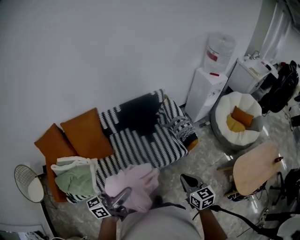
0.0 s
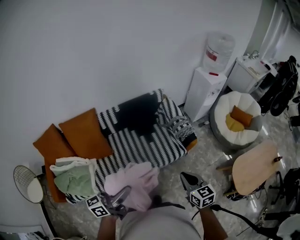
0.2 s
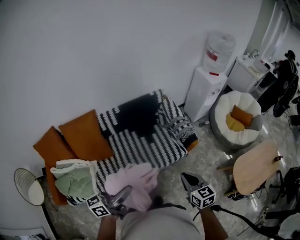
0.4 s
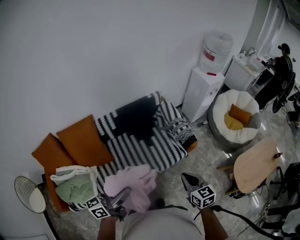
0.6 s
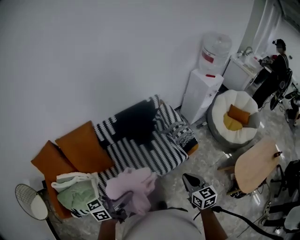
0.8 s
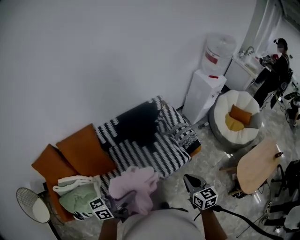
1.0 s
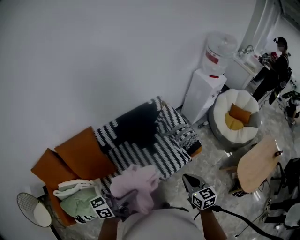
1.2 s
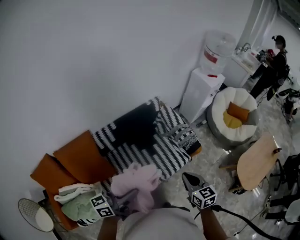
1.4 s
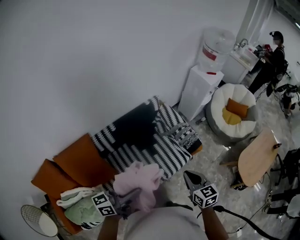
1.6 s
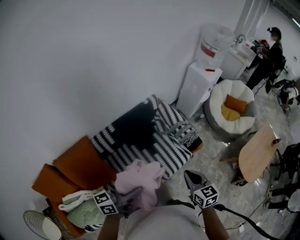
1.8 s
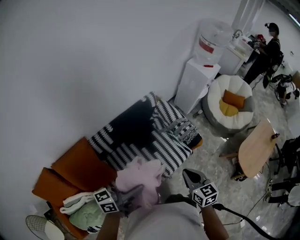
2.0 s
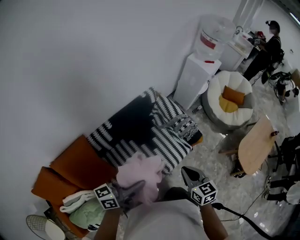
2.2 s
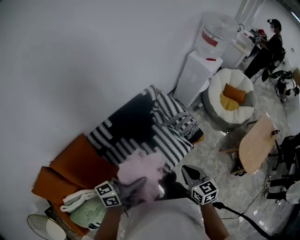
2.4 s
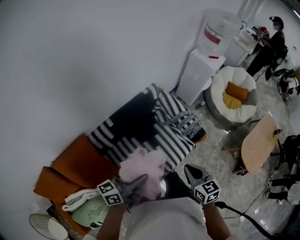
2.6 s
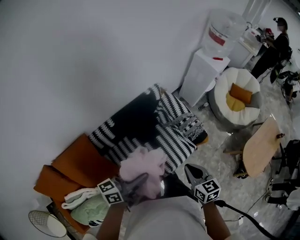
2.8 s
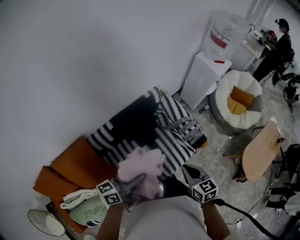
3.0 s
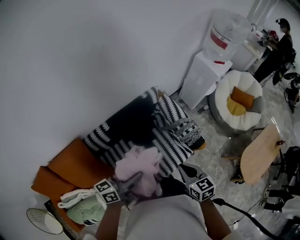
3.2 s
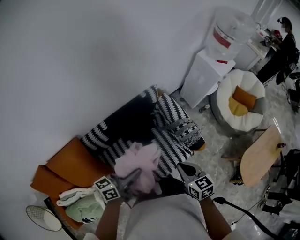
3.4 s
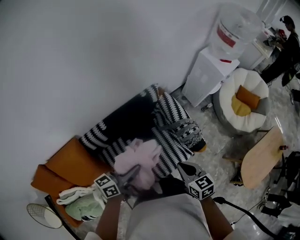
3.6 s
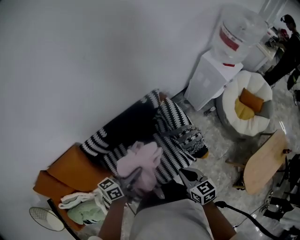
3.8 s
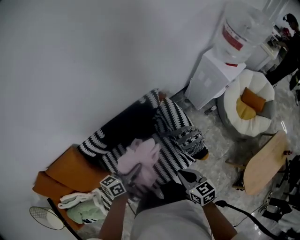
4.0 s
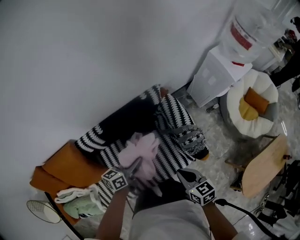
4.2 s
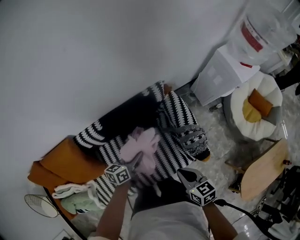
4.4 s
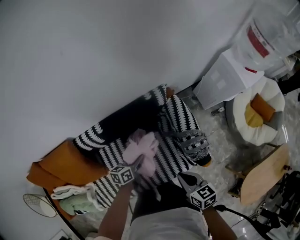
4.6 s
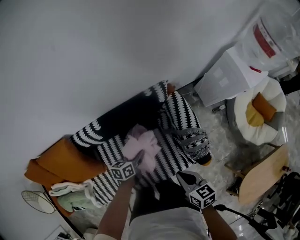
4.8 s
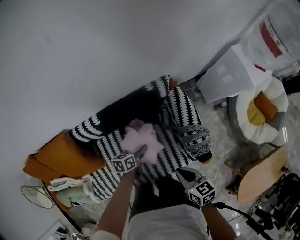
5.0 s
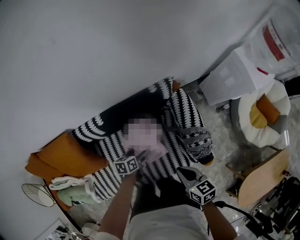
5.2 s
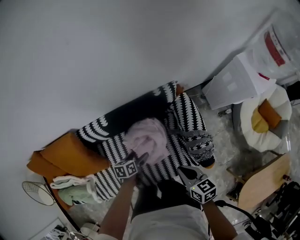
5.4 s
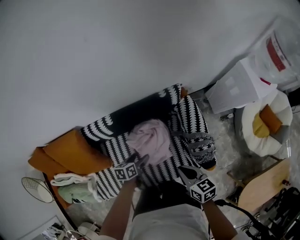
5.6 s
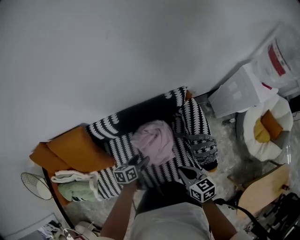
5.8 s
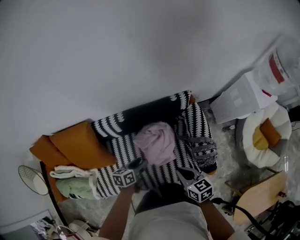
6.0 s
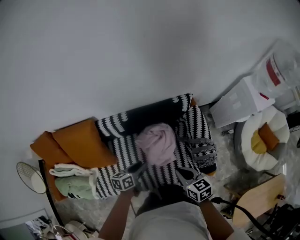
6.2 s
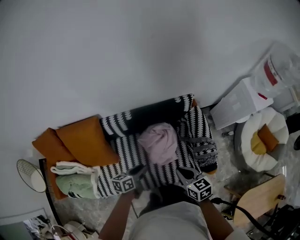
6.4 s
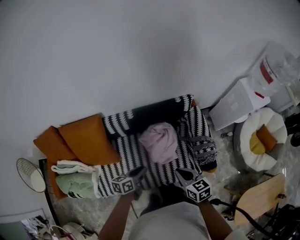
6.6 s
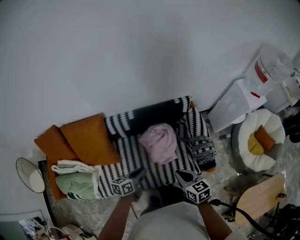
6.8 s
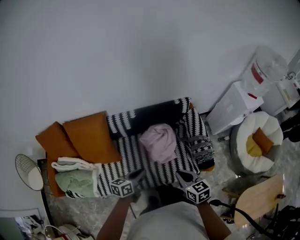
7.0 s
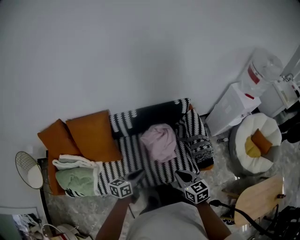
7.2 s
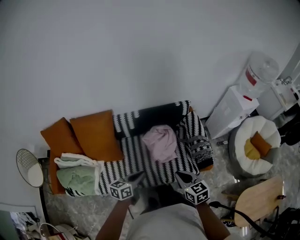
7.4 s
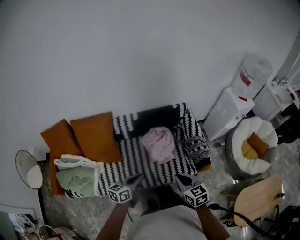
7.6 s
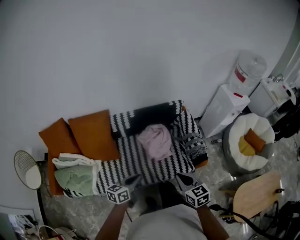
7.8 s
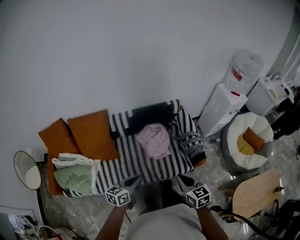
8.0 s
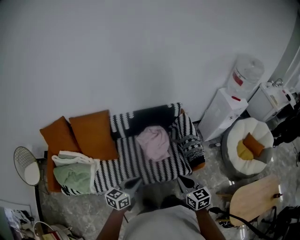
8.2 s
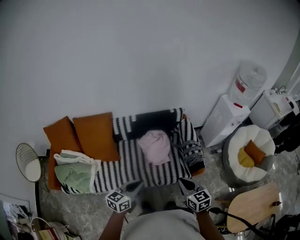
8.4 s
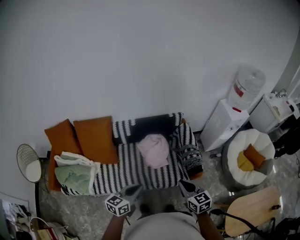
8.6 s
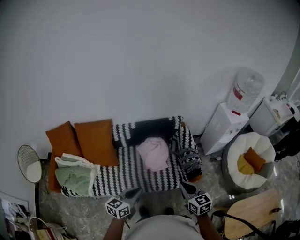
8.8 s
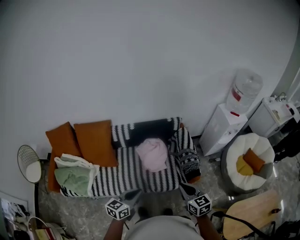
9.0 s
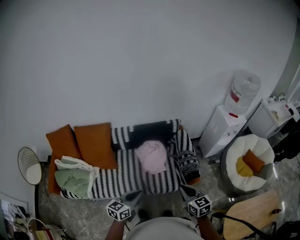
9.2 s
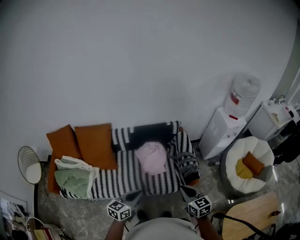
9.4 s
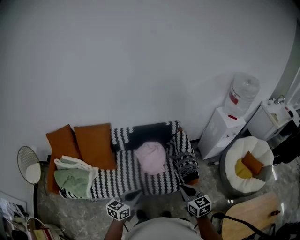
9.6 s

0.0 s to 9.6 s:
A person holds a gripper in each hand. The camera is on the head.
0.0 to 1.6 s: Both grippers travel together forward and to the left, roughly 25 cm. The left gripper turns by approximately 20 degrees.
1.6 to 3.2 s: Both grippers move forward and downward, approximately 20 cm.
3.2 to 4.8 s: The left gripper is displaced downward and forward by some 40 cm, and angles its fingers downward, by about 30 degrees. Meanwhile the right gripper moves forward and downward, roughly 25 cm, and rotates about 20 degrees.
4.8 to 6.4 s: The left gripper heads backward, to the left and upward, covering approximately 25 cm, and opens and closes again. The right gripper travels to the left, upward and backward by some 15 cm.
6.4 to 8.0 s: The left gripper travels backward and upward by approximately 35 cm, and changes its angle by roughly 20 degrees. The right gripper goes about 30 cm backward.
8.0 to 9.6 s: The right gripper shifts some 10 cm to the right. Meanwhile the left gripper travels to the right, upward and backward by some 15 cm.

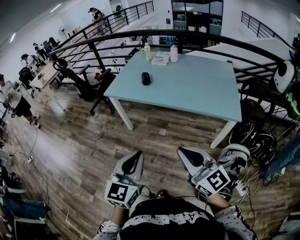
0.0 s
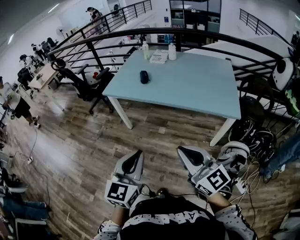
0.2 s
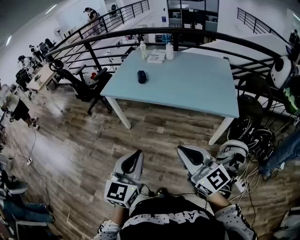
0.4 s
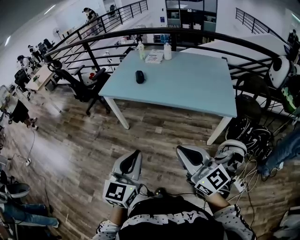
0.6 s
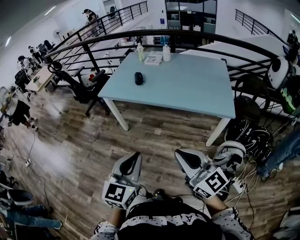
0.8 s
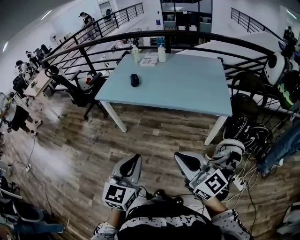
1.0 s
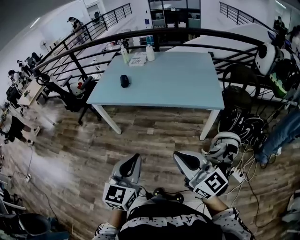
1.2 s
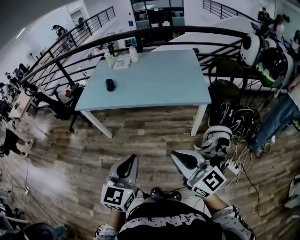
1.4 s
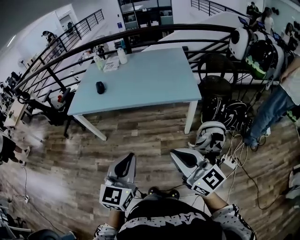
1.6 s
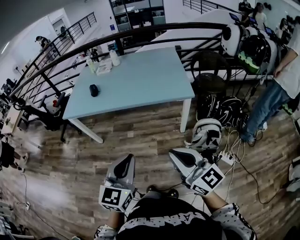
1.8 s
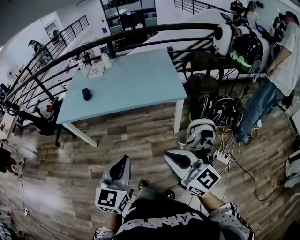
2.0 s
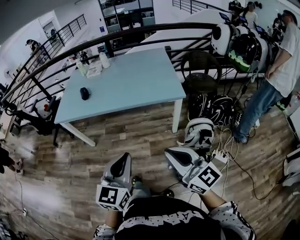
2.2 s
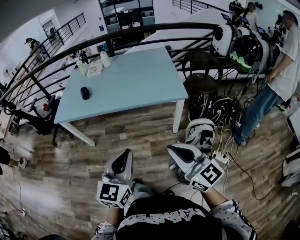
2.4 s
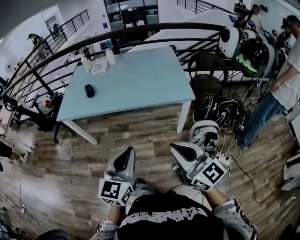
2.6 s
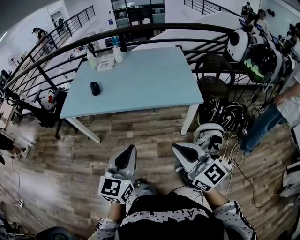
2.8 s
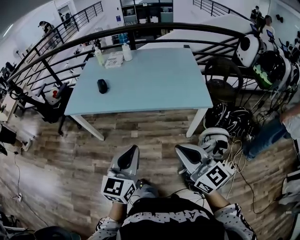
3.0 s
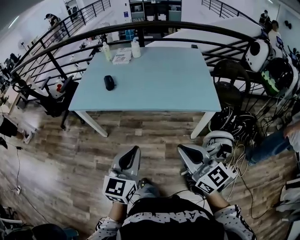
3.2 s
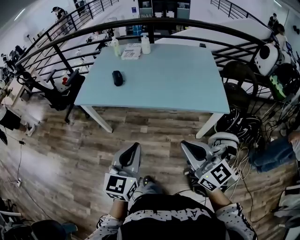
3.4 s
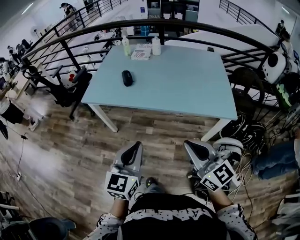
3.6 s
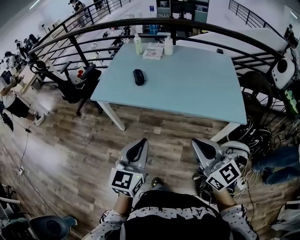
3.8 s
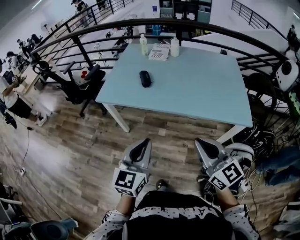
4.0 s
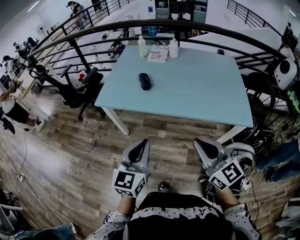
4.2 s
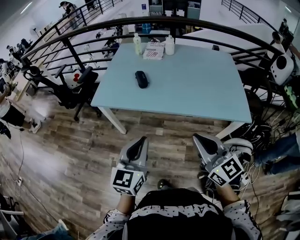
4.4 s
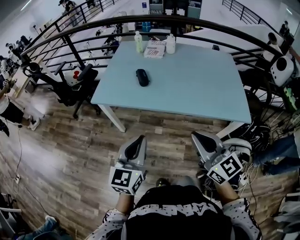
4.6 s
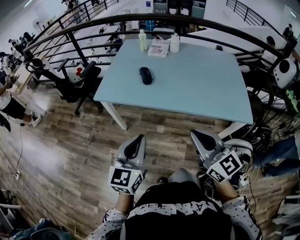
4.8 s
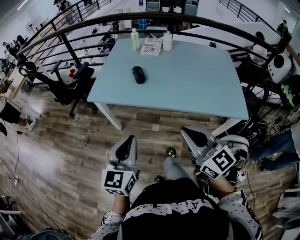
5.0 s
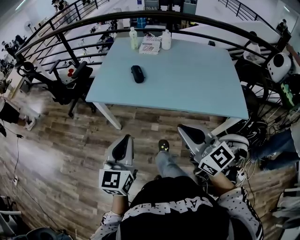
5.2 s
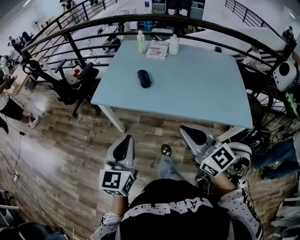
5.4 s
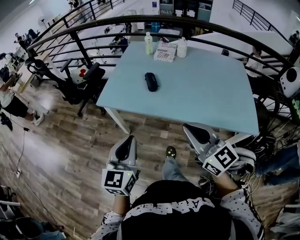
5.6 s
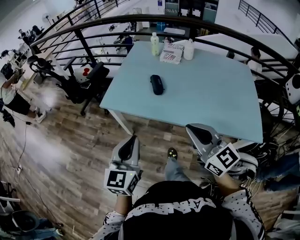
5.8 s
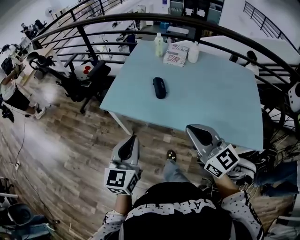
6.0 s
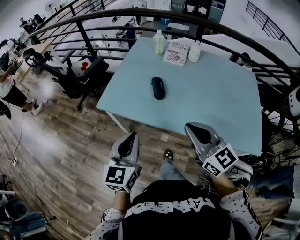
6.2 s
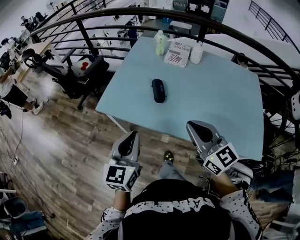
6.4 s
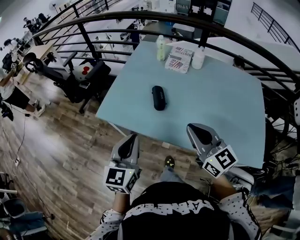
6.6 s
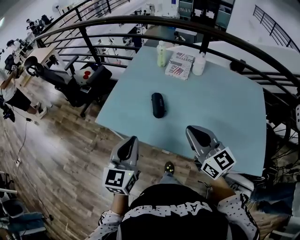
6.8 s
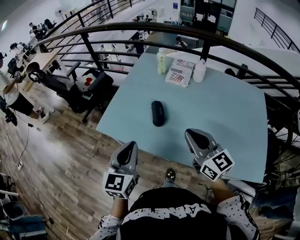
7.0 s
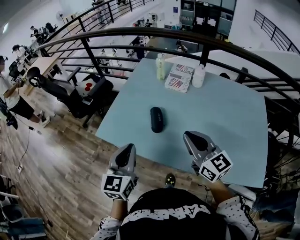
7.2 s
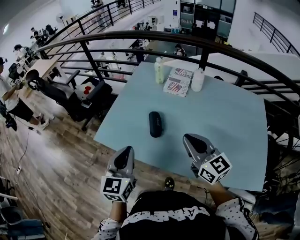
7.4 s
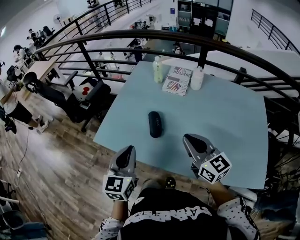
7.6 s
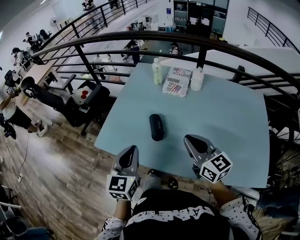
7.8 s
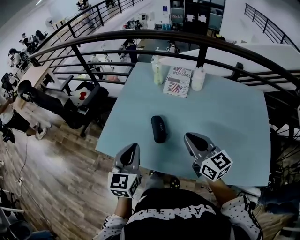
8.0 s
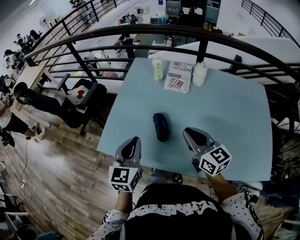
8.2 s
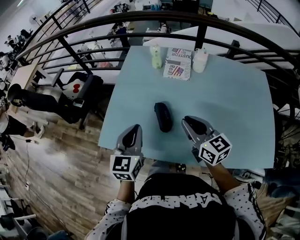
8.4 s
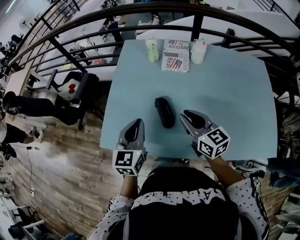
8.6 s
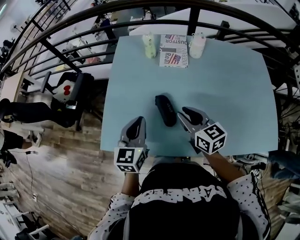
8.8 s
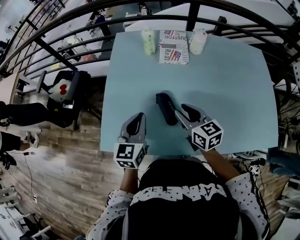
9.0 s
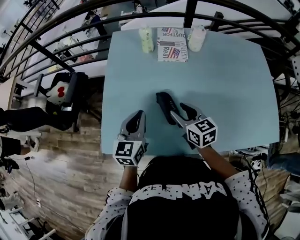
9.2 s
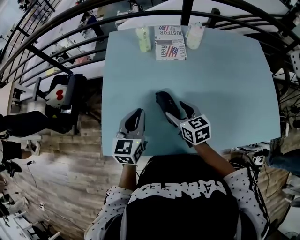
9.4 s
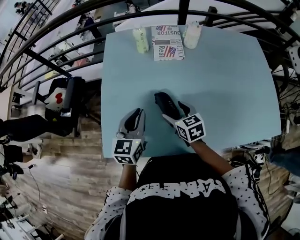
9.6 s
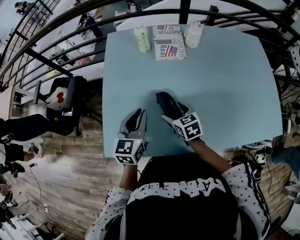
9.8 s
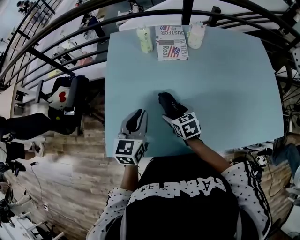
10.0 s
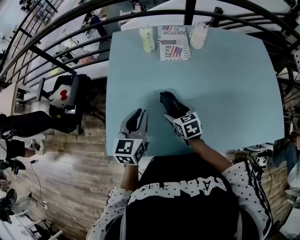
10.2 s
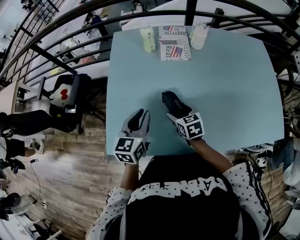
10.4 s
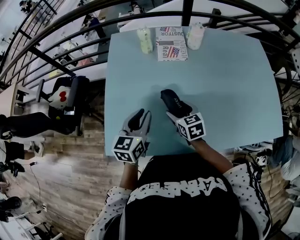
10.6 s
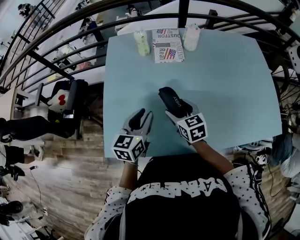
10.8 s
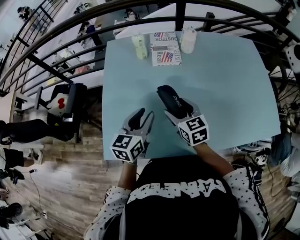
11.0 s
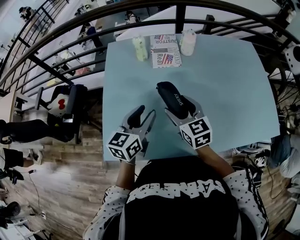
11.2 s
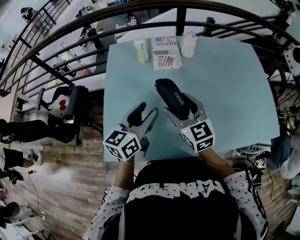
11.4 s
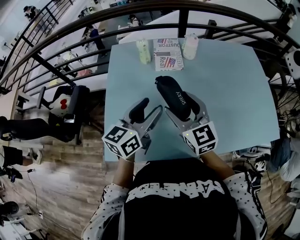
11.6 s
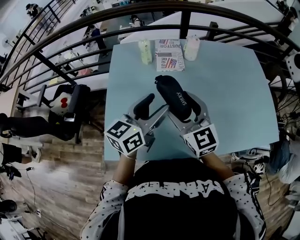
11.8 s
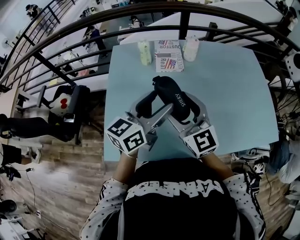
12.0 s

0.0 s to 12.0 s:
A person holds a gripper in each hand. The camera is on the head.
0.0 to 1.6 s: The left gripper travels to the right by some 15 cm; the right gripper moves to the right and backward, roughly 15 cm.
1.6 to 3.0 s: Both grippers move forward and to the left, about 15 cm.
3.0 to 4.4 s: The right gripper shifts some 25 cm forward and to the left; the left gripper heads to the left and forward, covering approximately 25 cm.
4.4 to 6.0 s: The right gripper goes some 20 cm forward. The left gripper goes roughly 20 cm forward and to the left.
6.0 to 7.6 s: The grippers both shift forward and to the right by about 20 cm.
7.6 to 9.0 s: The right gripper is displaced forward, downward and to the left by some 25 cm, and rotates some 30 degrees; the left gripper heads forward and downward, covering approximately 25 cm, and turns by some 20 degrees.
9.0 to 10.4 s: The right gripper travels downward by some 10 cm, changes its angle by approximately 20 degrees, and opens its fingers.
10.4 to 12.0 s: The right gripper goes about 25 cm upward, and points its fingers approximately 40 degrees further upward. The left gripper heads upward and to the right, covering roughly 15 cm, and turns by approximately 30 degrees.

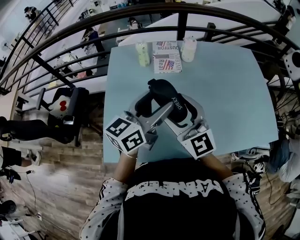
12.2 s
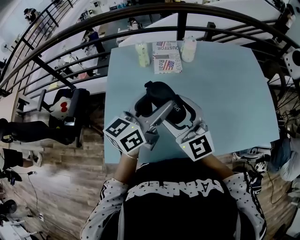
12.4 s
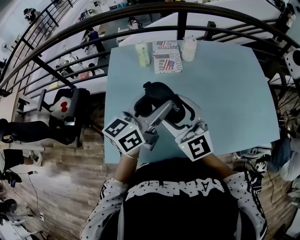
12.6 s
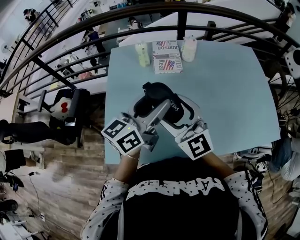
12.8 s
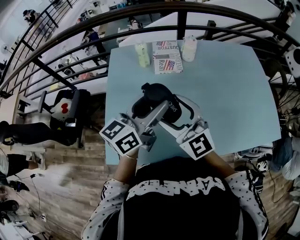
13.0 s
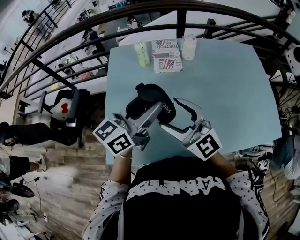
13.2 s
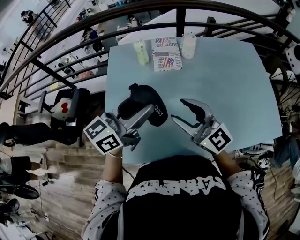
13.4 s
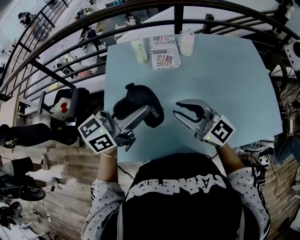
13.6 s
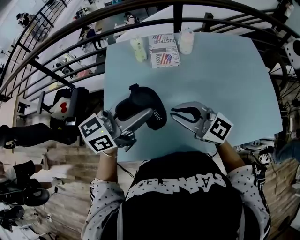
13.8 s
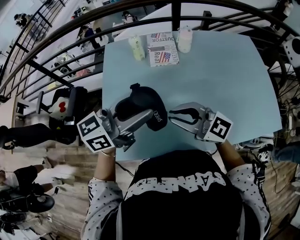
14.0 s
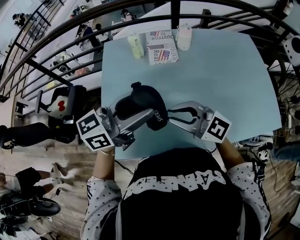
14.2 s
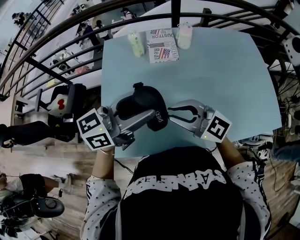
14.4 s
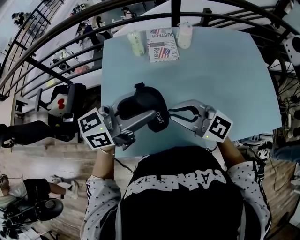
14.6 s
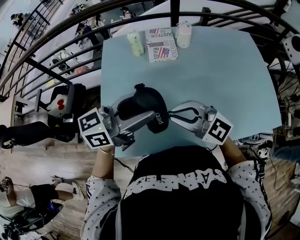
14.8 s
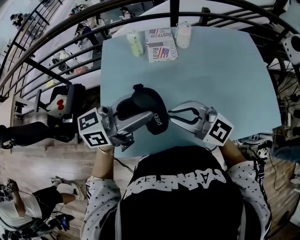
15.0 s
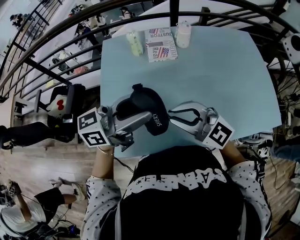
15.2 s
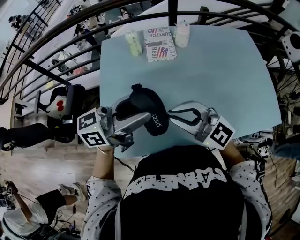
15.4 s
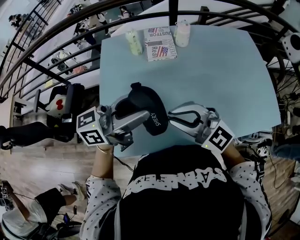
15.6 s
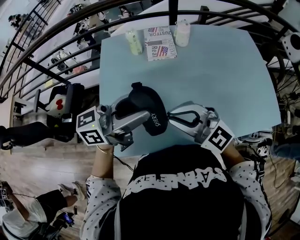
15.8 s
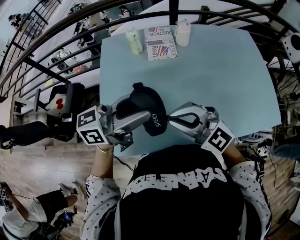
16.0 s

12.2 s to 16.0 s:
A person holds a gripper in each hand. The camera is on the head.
12.2 to 13.4 s: The grippers move only a little.
13.4 to 14.8 s: The right gripper ends up some 5 cm from where it was, turns by approximately 20 degrees, and closes up.
14.8 to 16.0 s: The grippers move only a little.
